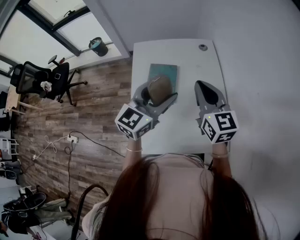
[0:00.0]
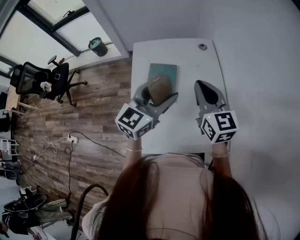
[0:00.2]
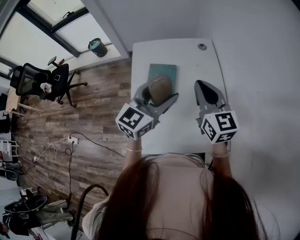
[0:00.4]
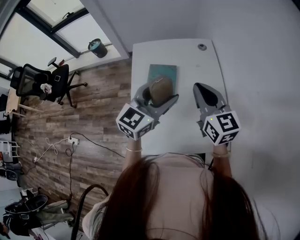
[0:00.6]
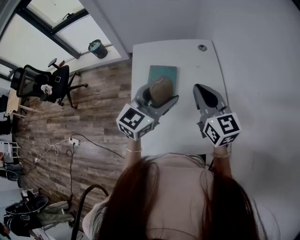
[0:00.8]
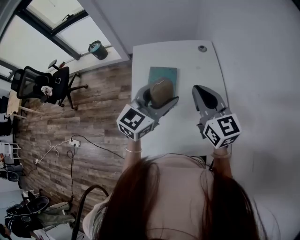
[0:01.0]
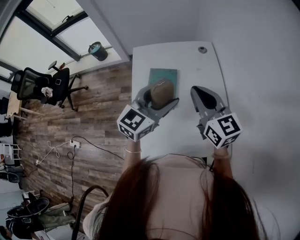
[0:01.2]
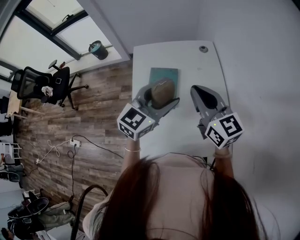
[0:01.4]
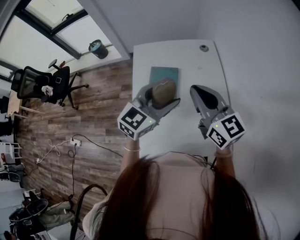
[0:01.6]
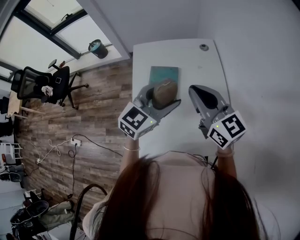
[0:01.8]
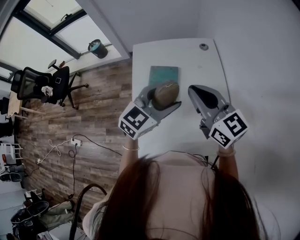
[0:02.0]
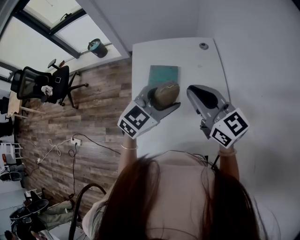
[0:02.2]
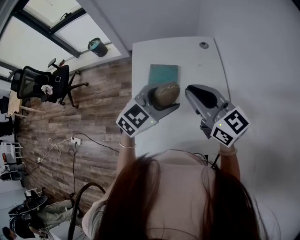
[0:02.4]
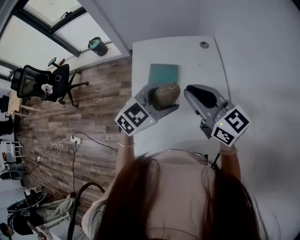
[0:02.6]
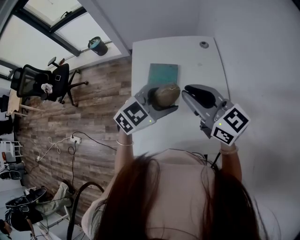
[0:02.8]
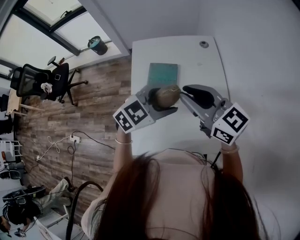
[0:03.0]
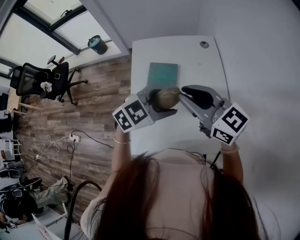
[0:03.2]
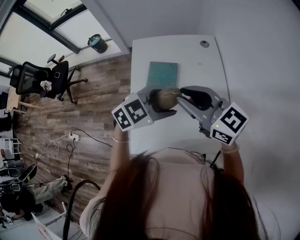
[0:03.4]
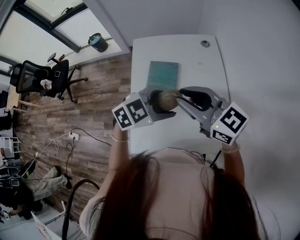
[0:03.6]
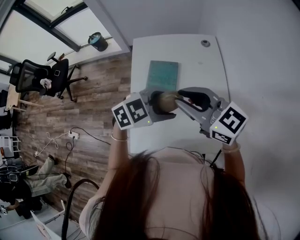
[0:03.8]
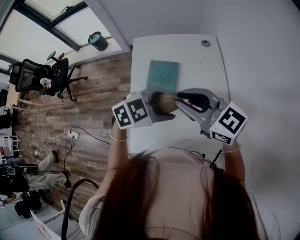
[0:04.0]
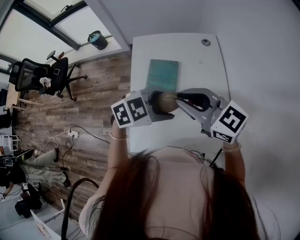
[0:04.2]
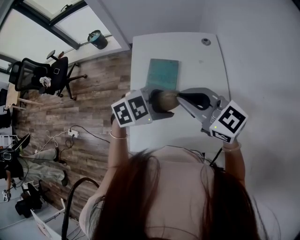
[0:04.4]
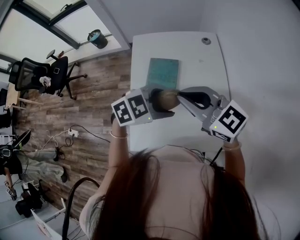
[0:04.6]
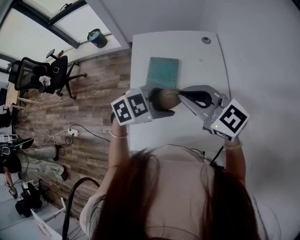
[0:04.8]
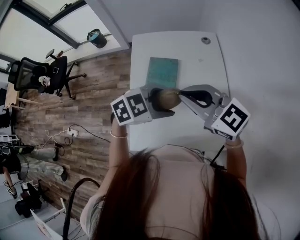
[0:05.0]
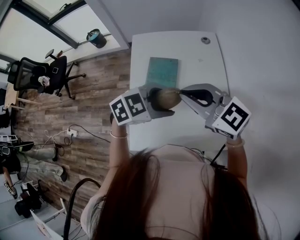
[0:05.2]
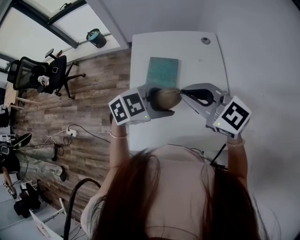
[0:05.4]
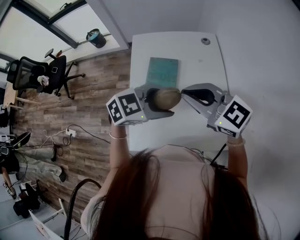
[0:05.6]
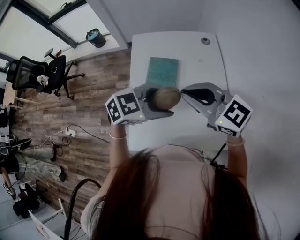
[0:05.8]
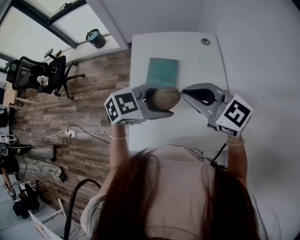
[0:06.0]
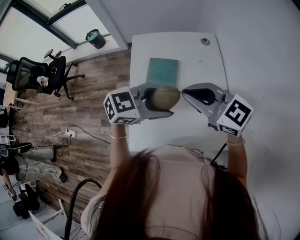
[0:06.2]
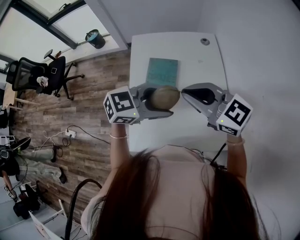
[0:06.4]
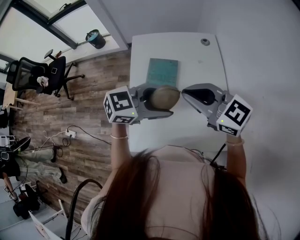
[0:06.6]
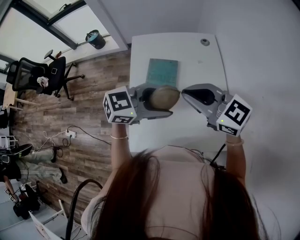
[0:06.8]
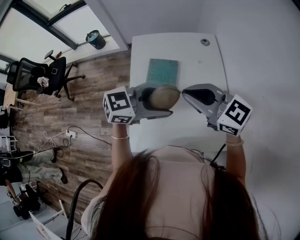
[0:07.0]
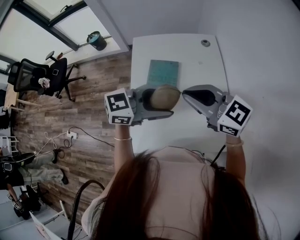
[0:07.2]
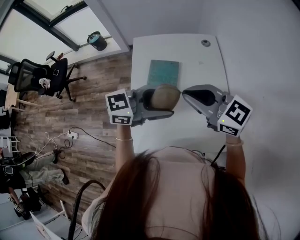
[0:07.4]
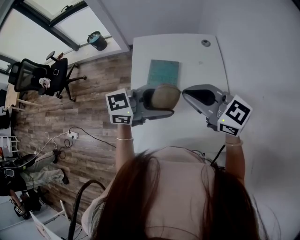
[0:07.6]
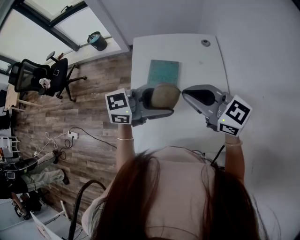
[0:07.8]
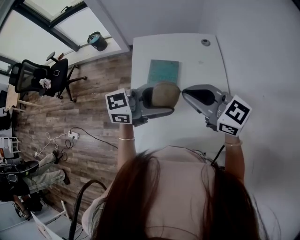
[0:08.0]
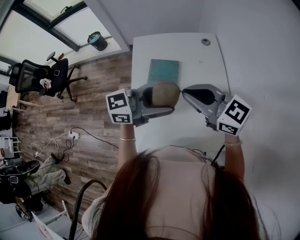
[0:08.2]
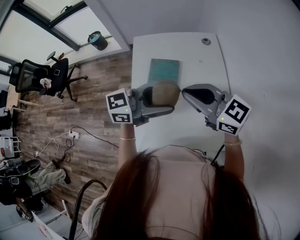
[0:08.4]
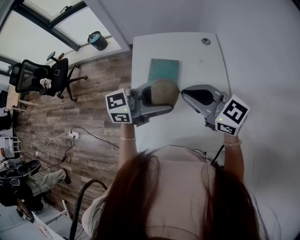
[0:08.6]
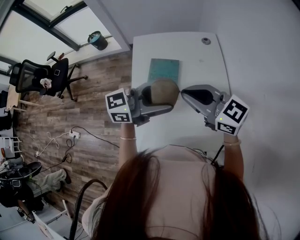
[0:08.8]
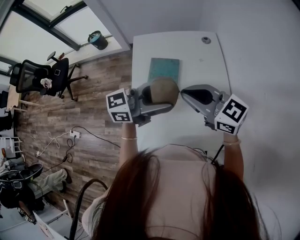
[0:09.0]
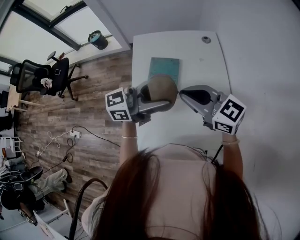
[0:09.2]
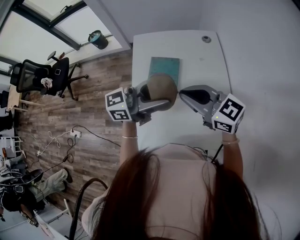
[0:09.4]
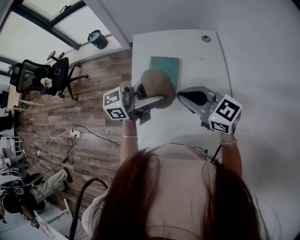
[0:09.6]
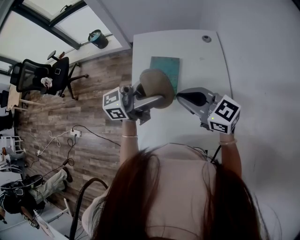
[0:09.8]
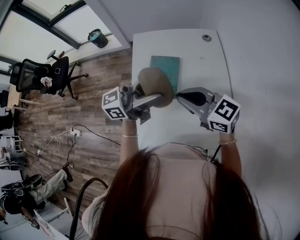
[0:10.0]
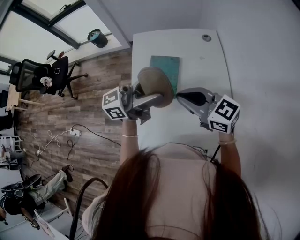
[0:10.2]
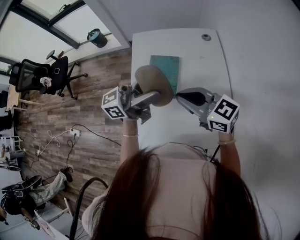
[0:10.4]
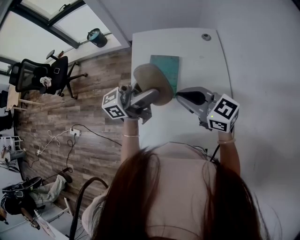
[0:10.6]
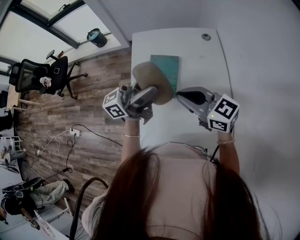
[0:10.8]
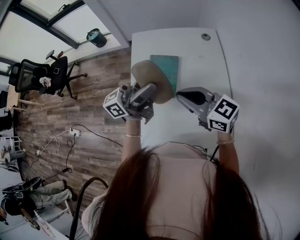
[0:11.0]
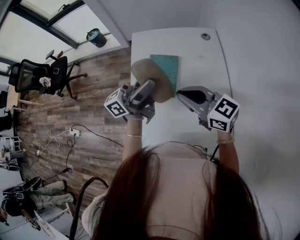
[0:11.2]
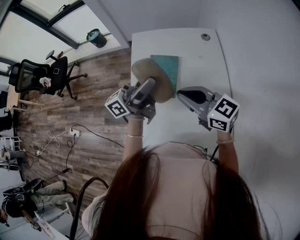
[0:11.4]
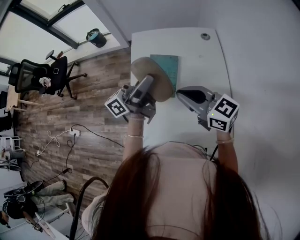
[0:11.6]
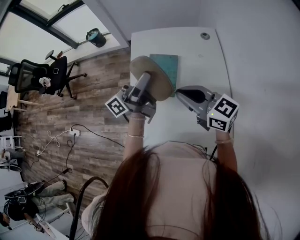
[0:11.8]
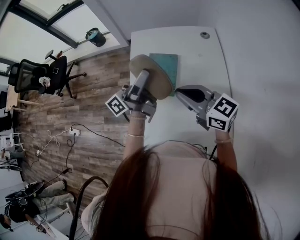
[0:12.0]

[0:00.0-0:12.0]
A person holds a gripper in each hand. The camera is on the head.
0:00.0 to 0:01.6: The grippers stay close to where they were, moving slightly.
0:01.6 to 0:03.0: The left gripper turns by some 30 degrees.
0:03.0 to 0:04.4: There are only small adjustments of the grippers.
0:04.4 to 0:06.0: The grippers make only small movements.
0:06.0 to 0:07.6: The left gripper changes its angle by about 20 degrees.
0:07.6 to 0:09.0: The grippers make only small movements.
0:09.0 to 0:10.4: The grippers move only a little.
0:10.4 to 0:12.0: The left gripper changes place by roughly 5 cm, and rotates about 30 degrees.

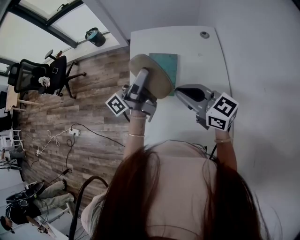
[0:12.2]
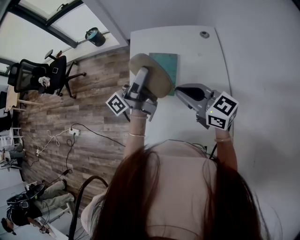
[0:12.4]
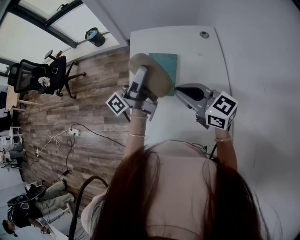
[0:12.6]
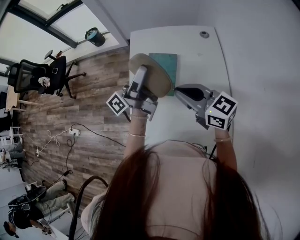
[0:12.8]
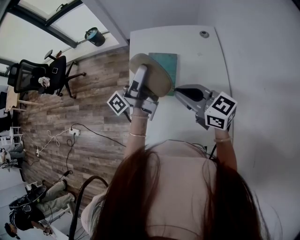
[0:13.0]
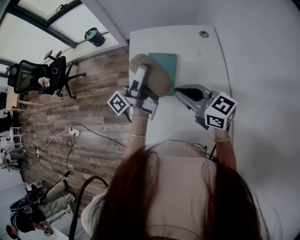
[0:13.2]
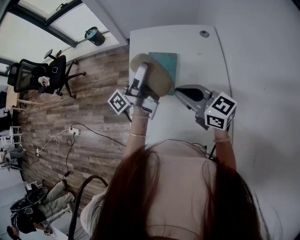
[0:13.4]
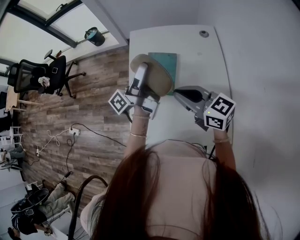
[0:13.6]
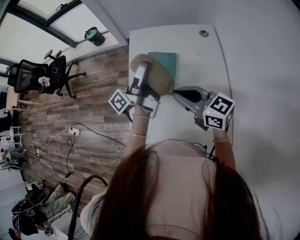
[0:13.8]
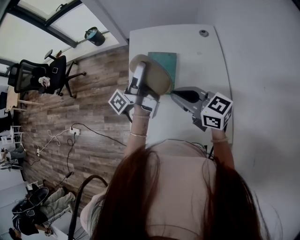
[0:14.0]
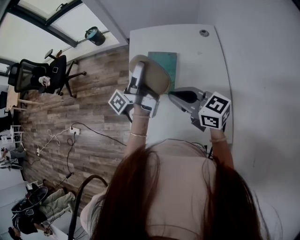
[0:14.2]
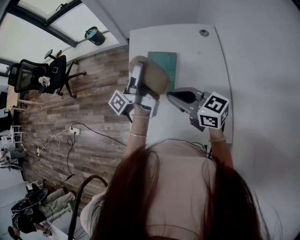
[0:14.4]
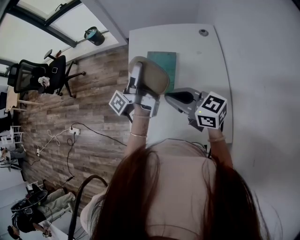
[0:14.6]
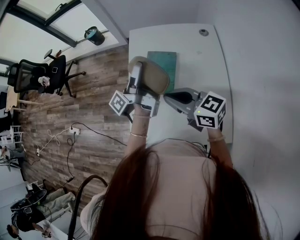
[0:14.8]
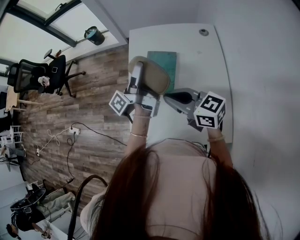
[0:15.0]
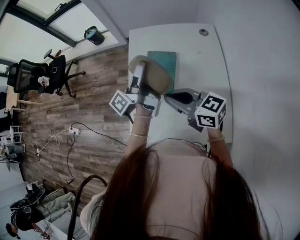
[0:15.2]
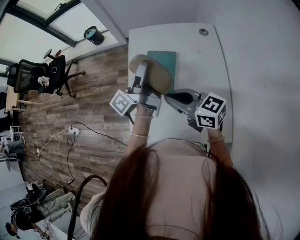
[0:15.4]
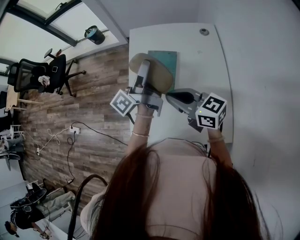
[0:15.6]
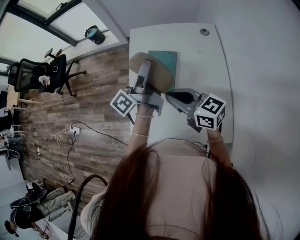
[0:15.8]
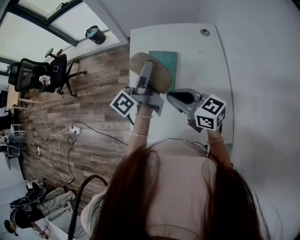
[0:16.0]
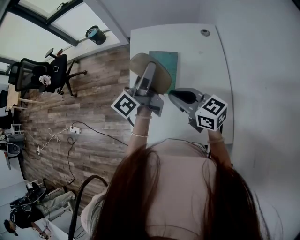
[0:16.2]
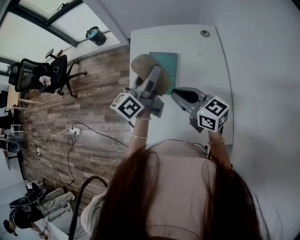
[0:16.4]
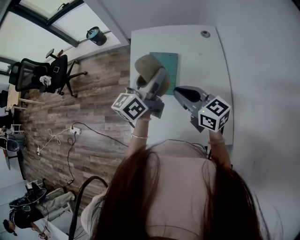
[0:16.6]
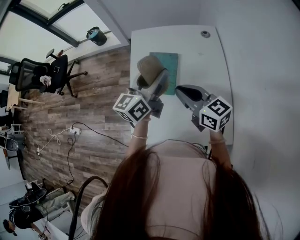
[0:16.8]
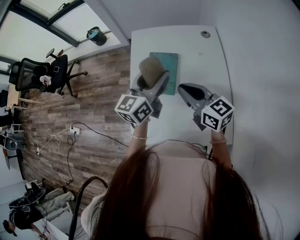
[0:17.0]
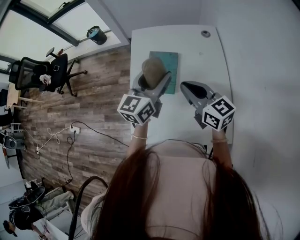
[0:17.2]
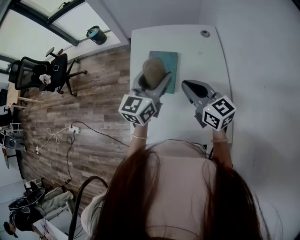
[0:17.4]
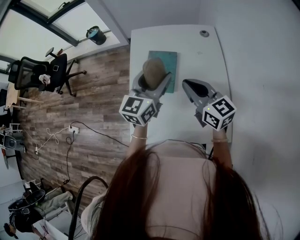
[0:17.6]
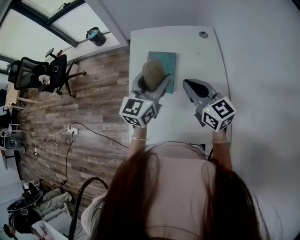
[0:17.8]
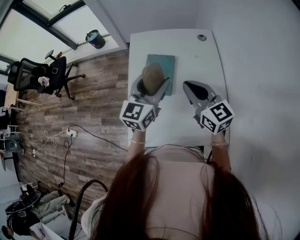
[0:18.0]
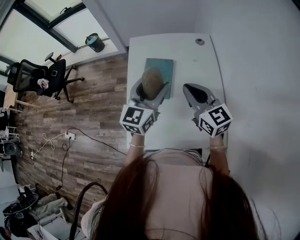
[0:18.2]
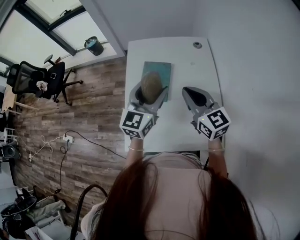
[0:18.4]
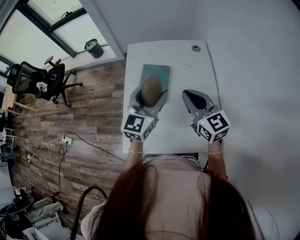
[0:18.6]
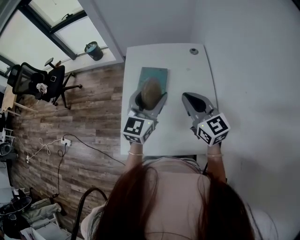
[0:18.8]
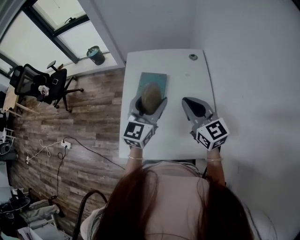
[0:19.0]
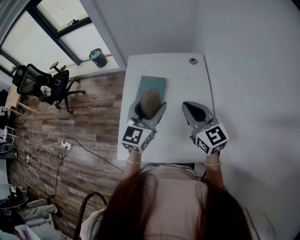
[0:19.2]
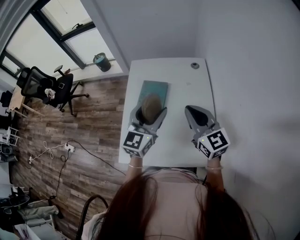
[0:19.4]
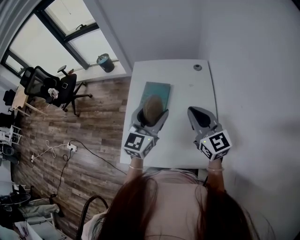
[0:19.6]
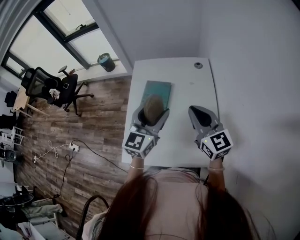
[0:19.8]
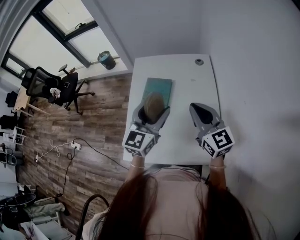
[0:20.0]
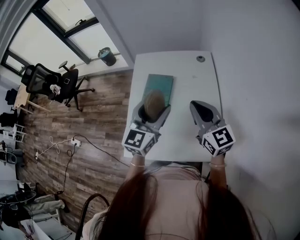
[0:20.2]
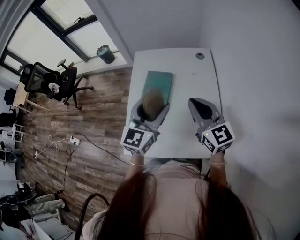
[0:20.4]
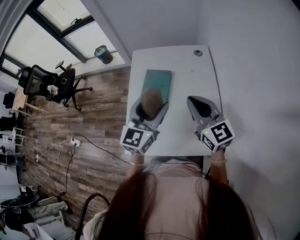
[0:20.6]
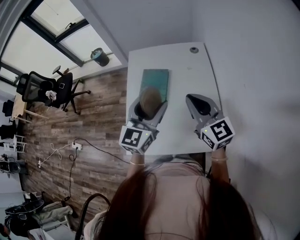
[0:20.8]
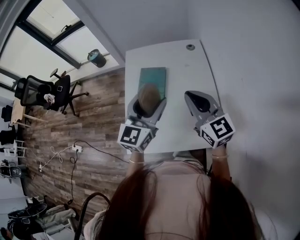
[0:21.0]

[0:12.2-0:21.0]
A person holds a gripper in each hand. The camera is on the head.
0:12.2 to 0:13.6: The grippers stay close to where they were, moving slightly.
0:13.6 to 0:15.2: There are only small adjustments of the grippers.
0:15.2 to 0:16.6: The left gripper twists roughly 50 degrees clockwise, seen from behind.
0:16.6 to 0:18.0: The left gripper moves some 5 cm, and swivels about 30 degrees.
0:18.0 to 0:19.6: The right gripper heads to the right, covering about 10 cm. Meanwhile the left gripper travels to the right and backward by roughly 10 cm.
0:19.6 to 0:21.0: The grippers move only a little.

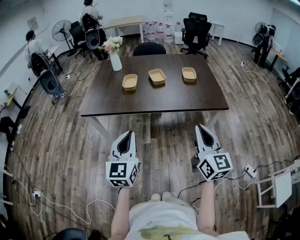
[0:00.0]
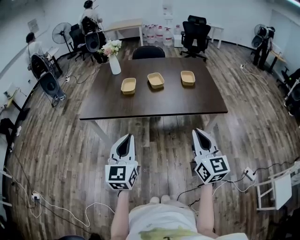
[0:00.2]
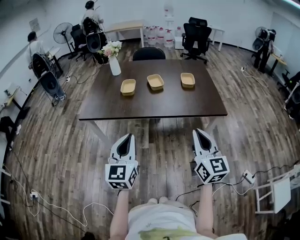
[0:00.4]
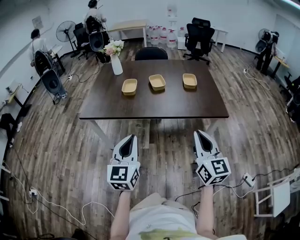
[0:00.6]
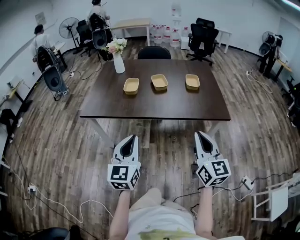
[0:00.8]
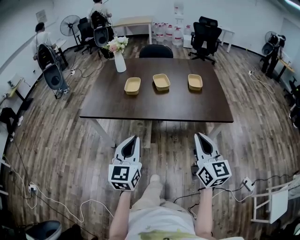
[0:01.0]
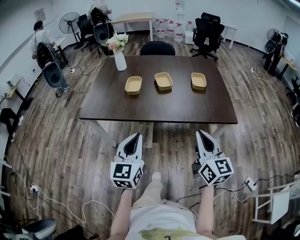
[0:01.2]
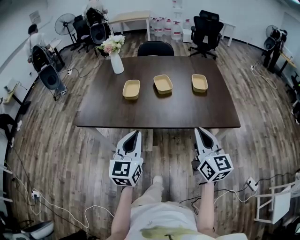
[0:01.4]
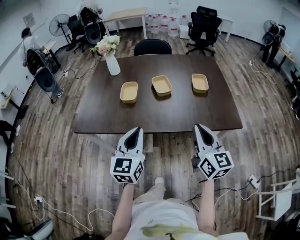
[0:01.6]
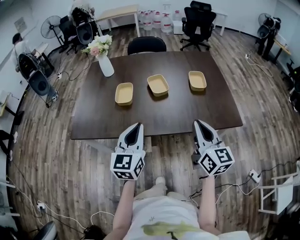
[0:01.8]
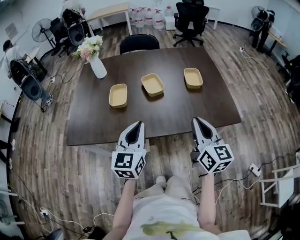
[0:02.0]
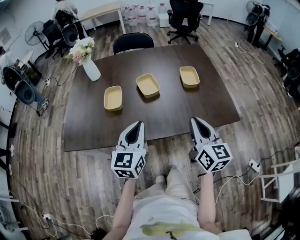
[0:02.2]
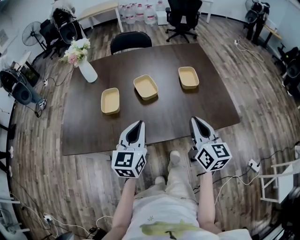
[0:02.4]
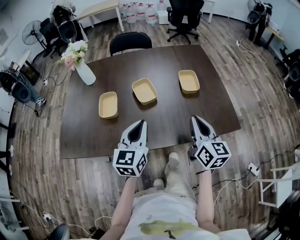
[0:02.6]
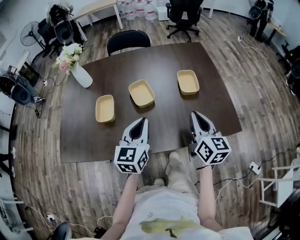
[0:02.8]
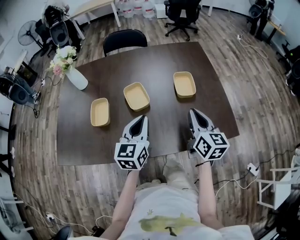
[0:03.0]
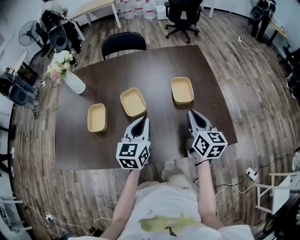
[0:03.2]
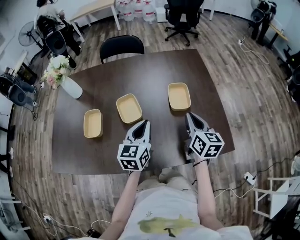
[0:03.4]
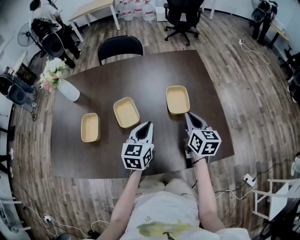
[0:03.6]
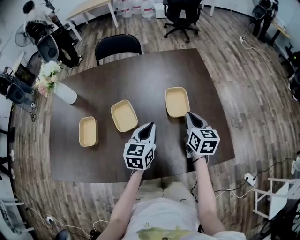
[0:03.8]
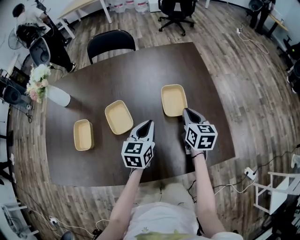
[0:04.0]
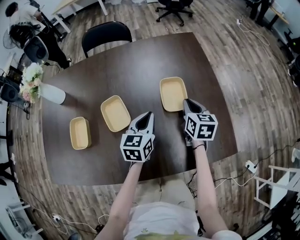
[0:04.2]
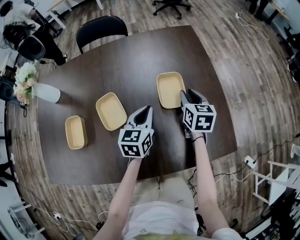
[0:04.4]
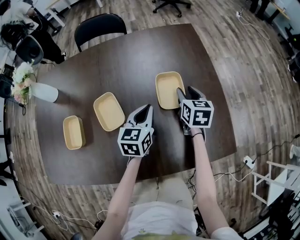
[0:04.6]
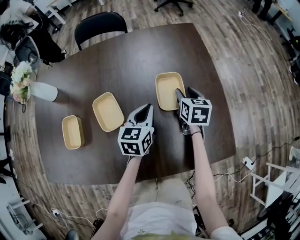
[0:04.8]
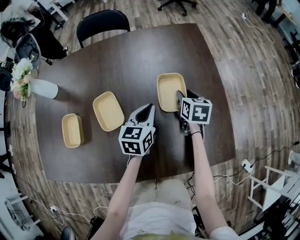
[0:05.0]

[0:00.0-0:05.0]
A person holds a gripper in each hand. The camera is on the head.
0:00.0 to 0:01.6: The two grippers go about 20 cm forward.
0:01.6 to 0:03.4: The grippers both shift forward and to the right by some 35 cm. The right gripper rotates roughly 20 degrees.
0:03.4 to 0:05.0: The left gripper goes about 20 cm forward, downward and to the right. The right gripper travels forward and downward by about 20 cm, turns by roughly 30 degrees, and opens.
